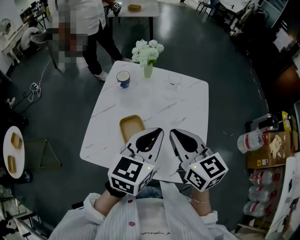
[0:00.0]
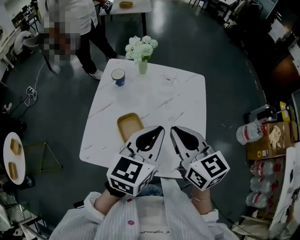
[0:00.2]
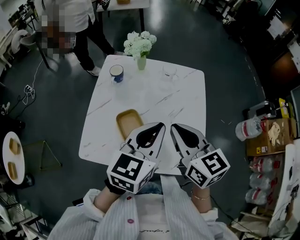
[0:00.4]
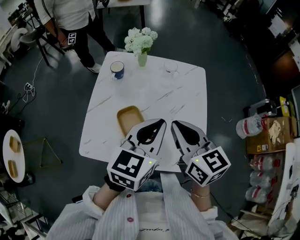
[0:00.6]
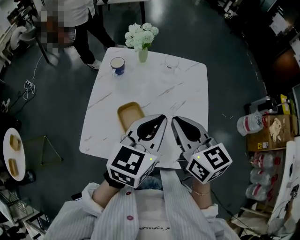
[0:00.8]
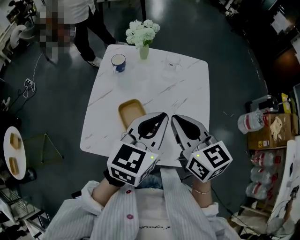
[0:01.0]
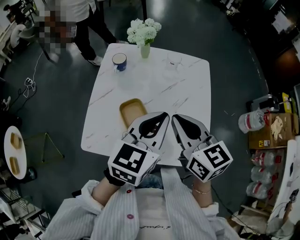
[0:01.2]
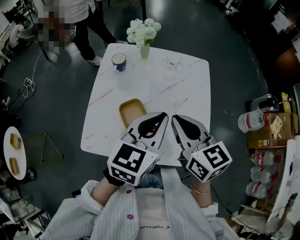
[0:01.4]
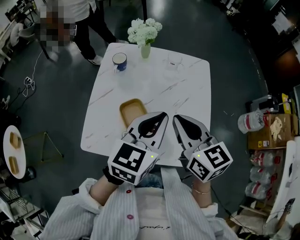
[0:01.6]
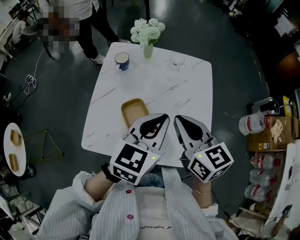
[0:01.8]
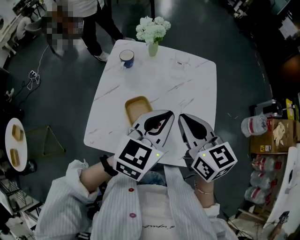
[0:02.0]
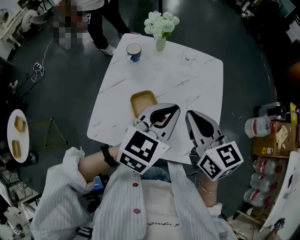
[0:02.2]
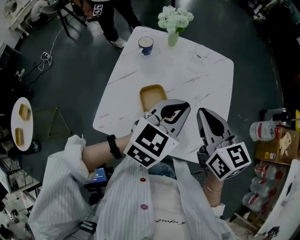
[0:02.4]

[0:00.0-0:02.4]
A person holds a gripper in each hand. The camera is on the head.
0:00.0 to 0:02.4: The grippers make only small movements.

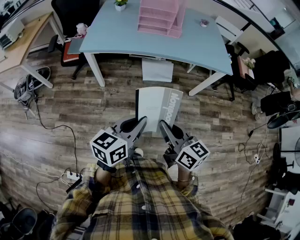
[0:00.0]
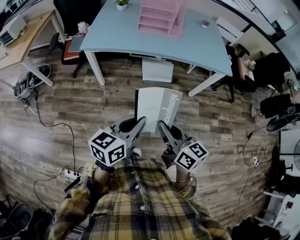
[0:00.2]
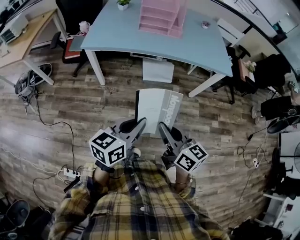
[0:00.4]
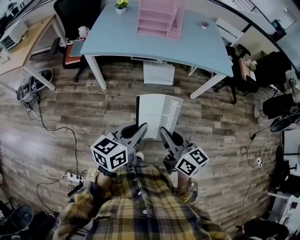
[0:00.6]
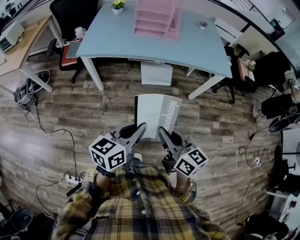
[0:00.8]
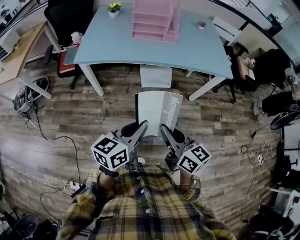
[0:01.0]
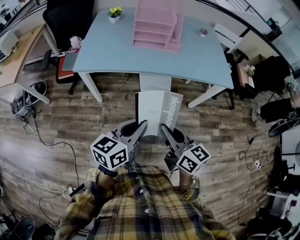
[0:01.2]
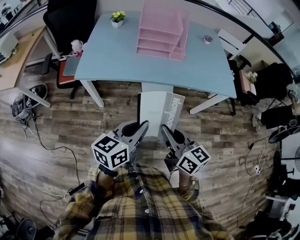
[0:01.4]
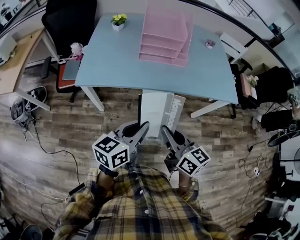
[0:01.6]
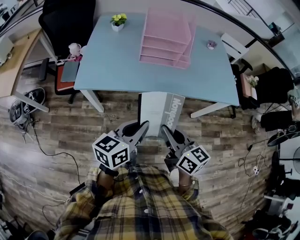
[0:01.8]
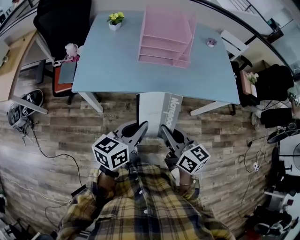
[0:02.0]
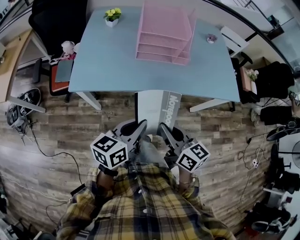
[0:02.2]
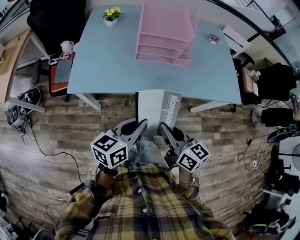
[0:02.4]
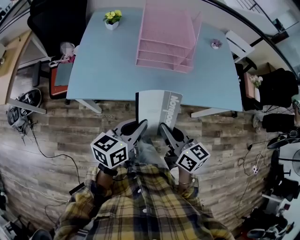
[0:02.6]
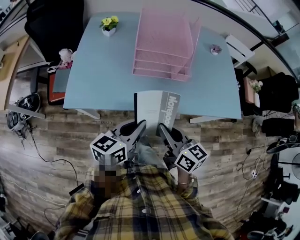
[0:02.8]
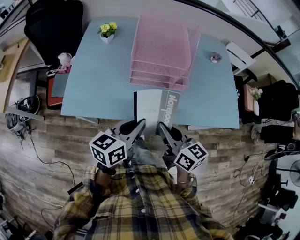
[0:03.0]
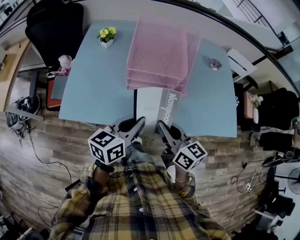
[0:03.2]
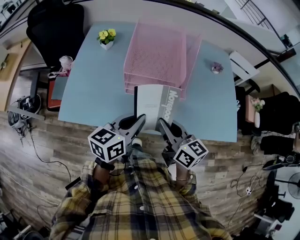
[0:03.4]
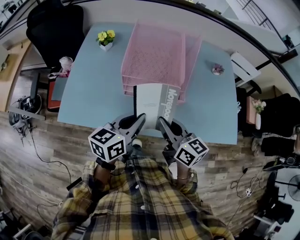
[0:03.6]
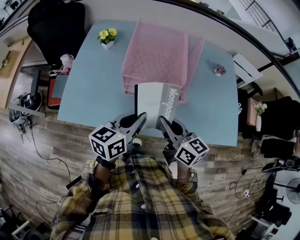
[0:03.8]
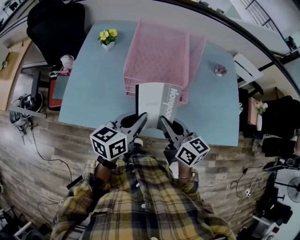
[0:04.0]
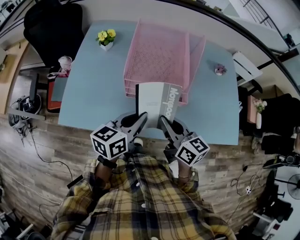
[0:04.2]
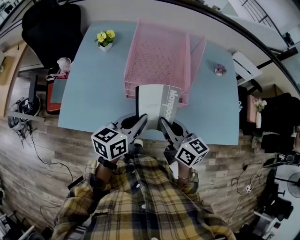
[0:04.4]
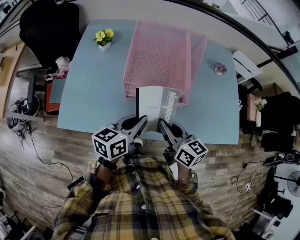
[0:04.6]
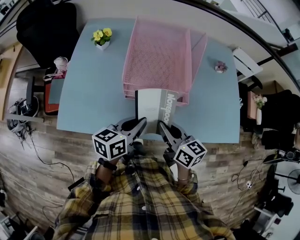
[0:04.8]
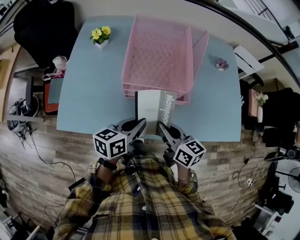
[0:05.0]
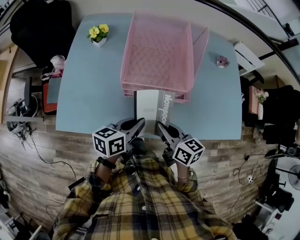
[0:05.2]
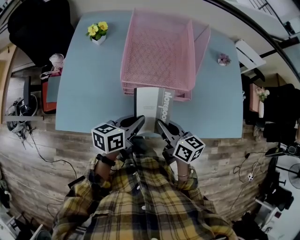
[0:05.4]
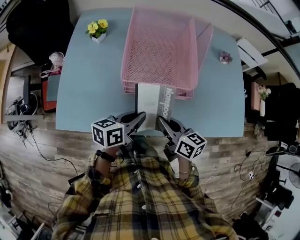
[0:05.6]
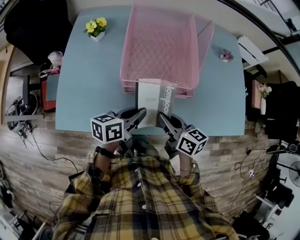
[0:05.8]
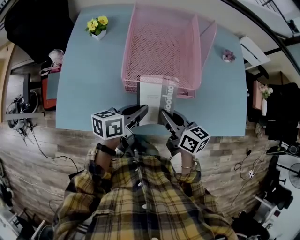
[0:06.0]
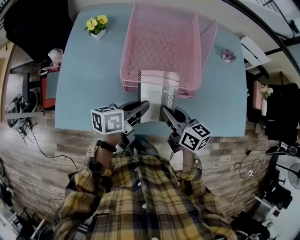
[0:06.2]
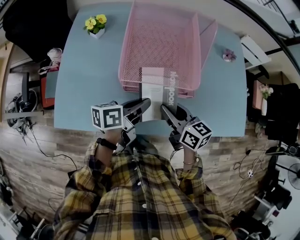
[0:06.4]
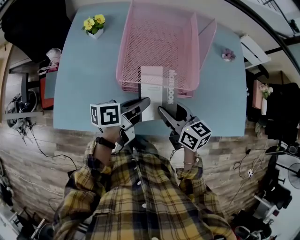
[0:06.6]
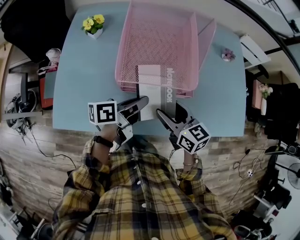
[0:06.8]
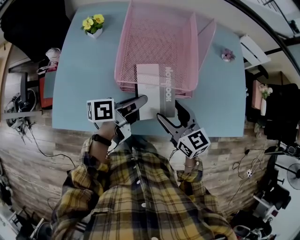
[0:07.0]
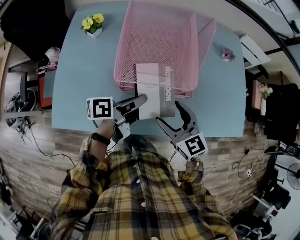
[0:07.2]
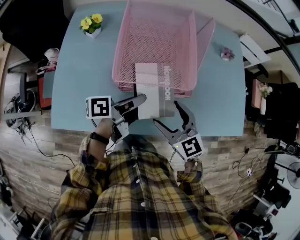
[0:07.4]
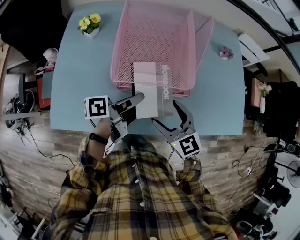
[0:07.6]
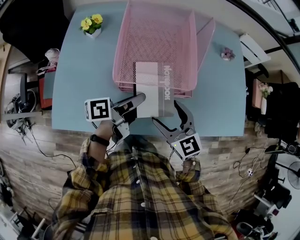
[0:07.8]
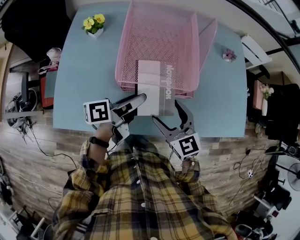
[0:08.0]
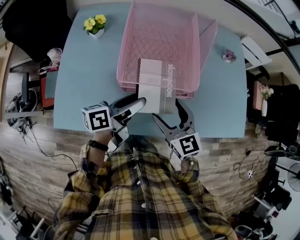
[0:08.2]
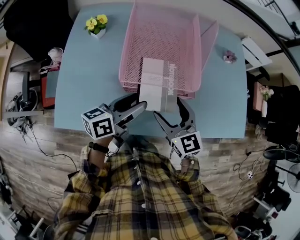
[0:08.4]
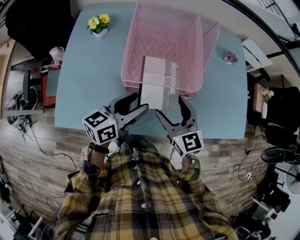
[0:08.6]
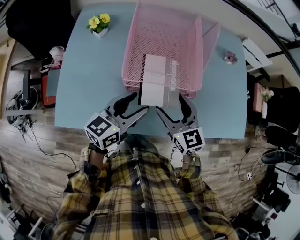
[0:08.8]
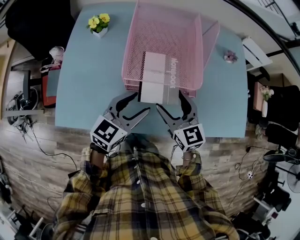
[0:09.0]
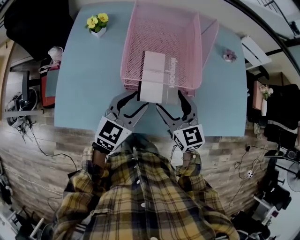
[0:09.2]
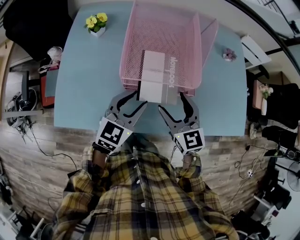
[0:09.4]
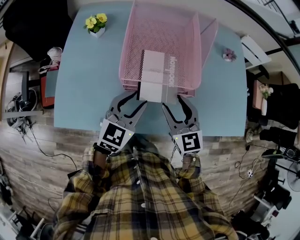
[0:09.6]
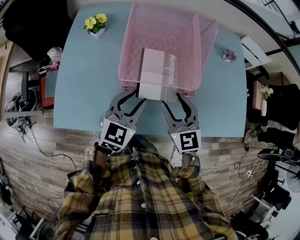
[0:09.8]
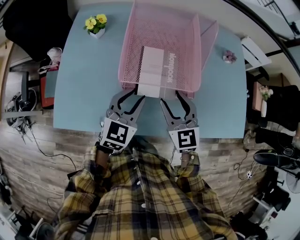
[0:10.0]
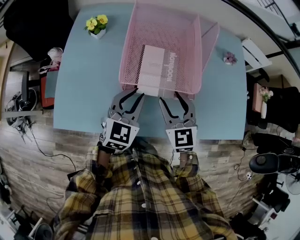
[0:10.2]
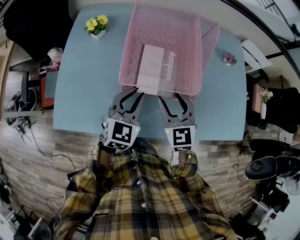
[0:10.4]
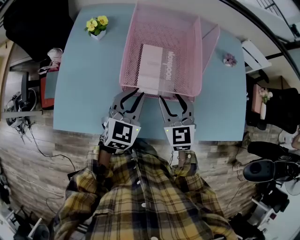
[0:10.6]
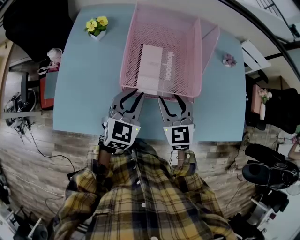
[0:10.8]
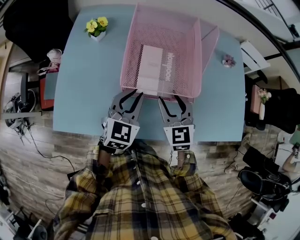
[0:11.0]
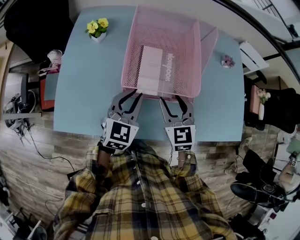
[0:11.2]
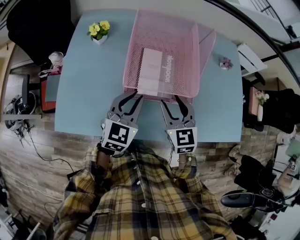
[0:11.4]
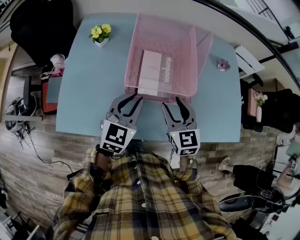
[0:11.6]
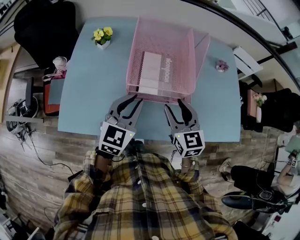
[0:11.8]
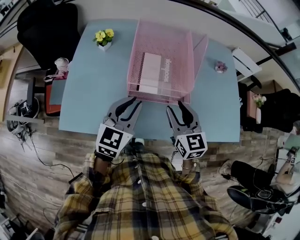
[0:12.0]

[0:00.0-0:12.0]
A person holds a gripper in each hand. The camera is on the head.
0:00.0 to 0:01.6: Both grippers travel together forward, about 20 cm.
0:01.6 to 0:03.0: Both grippers travel together forward, about 25 cm.
0:03.0 to 0:04.4: The grippers both shift forward by about 10 cm.
0:04.4 to 0:06.0: Both grippers travel together downward, approximately 10 cm. The left gripper turns by about 20 degrees.
0:06.0 to 0:07.6: The left gripper rotates approximately 30 degrees. The right gripper rotates around the line of its fingers by approximately 40 degrees, counterclockwise from behind, and opens its fingers.
0:07.6 to 0:09.0: The left gripper rotates around the line of its fingers by roughly 70 degrees, clockwise from behind, and opens.
0:09.0 to 0:10.4: The right gripper closes its fingers. The left gripper swivels roughly 20 degrees, and closes.
0:10.4 to 0:12.0: The left gripper travels upward and backward by about 10 cm. Meanwhile the right gripper moves some 5 cm.

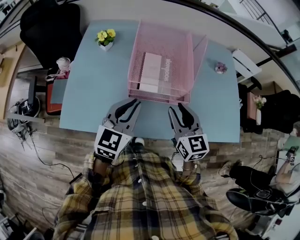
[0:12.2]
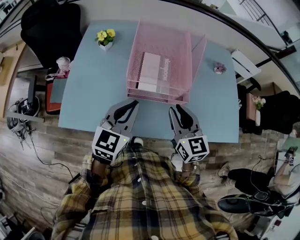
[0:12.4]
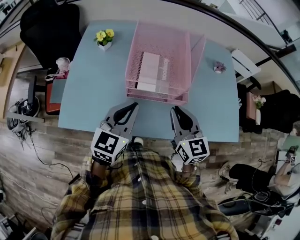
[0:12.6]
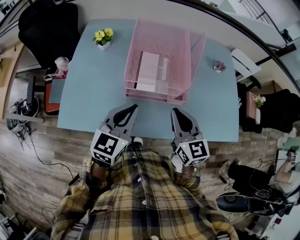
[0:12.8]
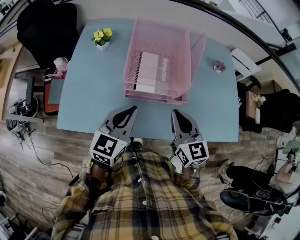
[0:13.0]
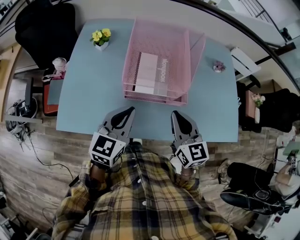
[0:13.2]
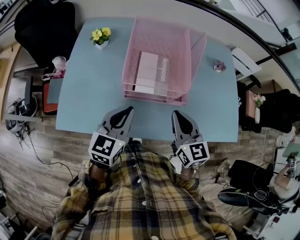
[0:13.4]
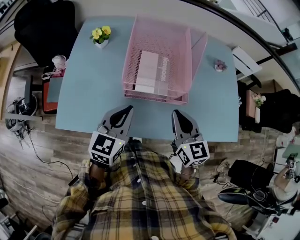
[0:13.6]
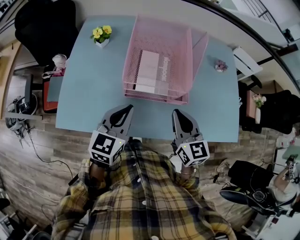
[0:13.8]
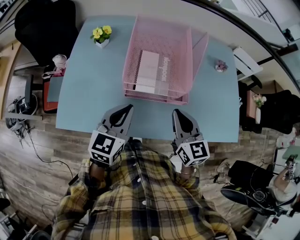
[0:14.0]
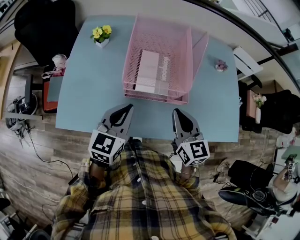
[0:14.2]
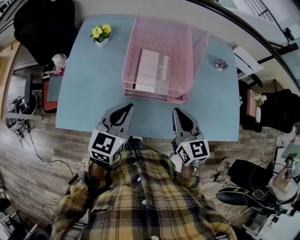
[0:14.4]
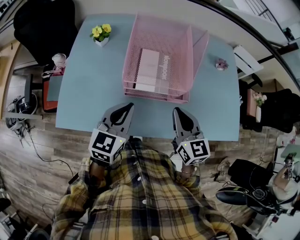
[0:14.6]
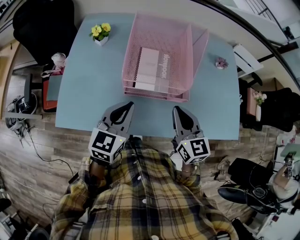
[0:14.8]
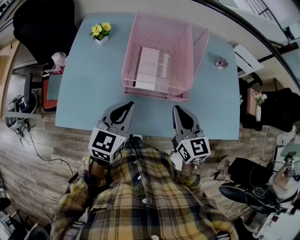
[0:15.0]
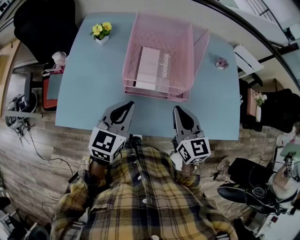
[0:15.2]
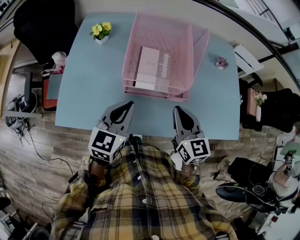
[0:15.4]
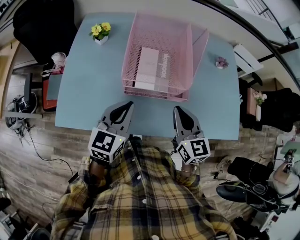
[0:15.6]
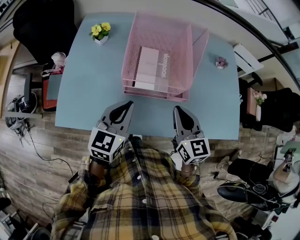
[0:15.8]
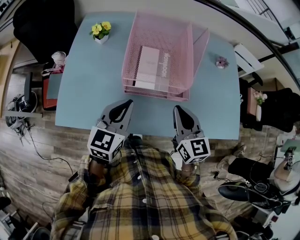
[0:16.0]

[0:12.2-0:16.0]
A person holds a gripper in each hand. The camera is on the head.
0:12.2 to 0:13.4: The right gripper closes.
0:13.4 to 0:16.0: Both grippers stay put.

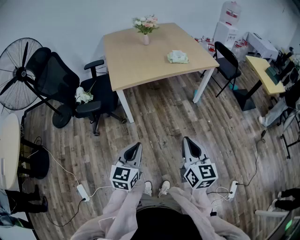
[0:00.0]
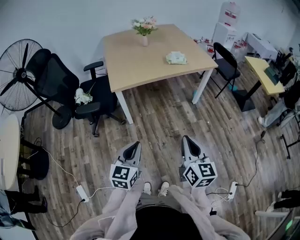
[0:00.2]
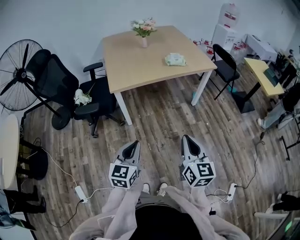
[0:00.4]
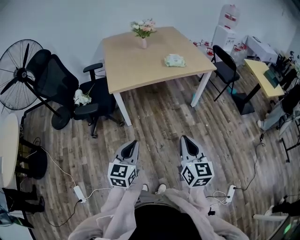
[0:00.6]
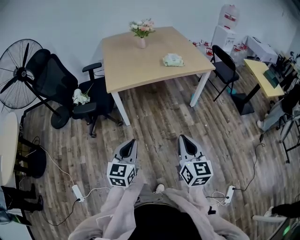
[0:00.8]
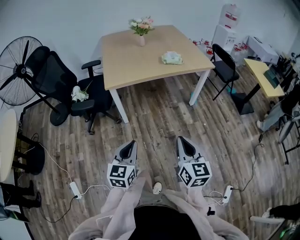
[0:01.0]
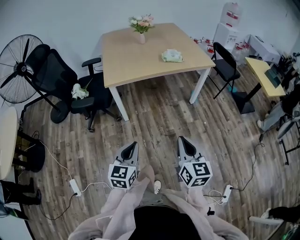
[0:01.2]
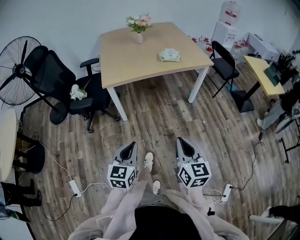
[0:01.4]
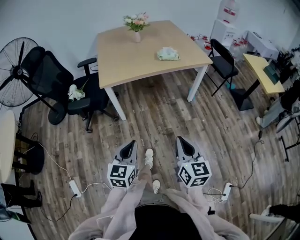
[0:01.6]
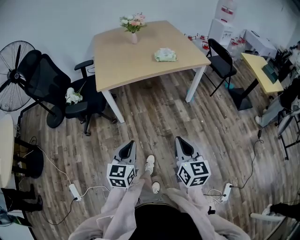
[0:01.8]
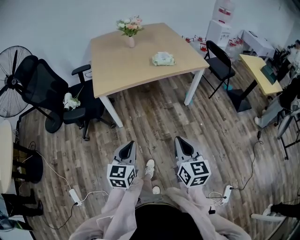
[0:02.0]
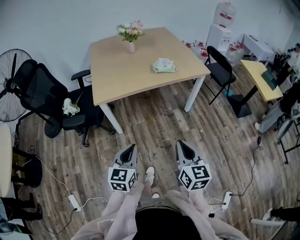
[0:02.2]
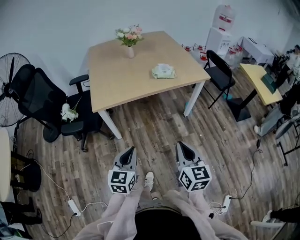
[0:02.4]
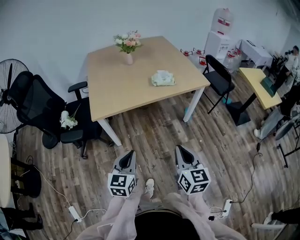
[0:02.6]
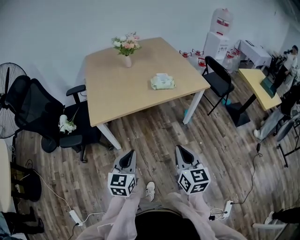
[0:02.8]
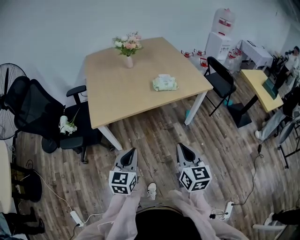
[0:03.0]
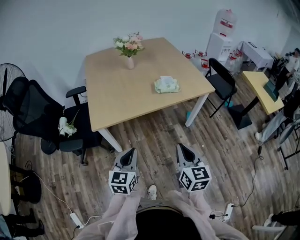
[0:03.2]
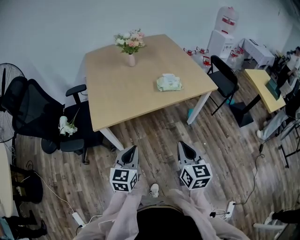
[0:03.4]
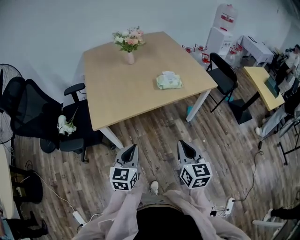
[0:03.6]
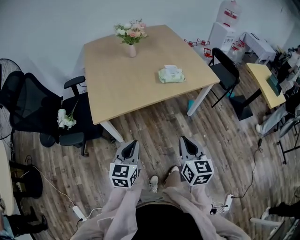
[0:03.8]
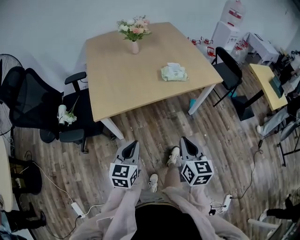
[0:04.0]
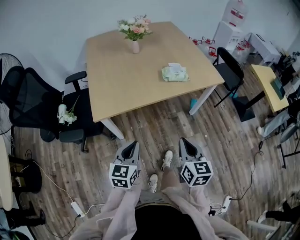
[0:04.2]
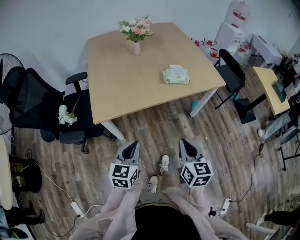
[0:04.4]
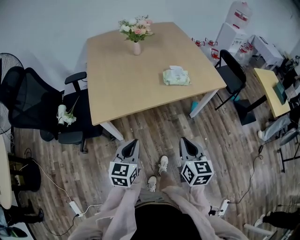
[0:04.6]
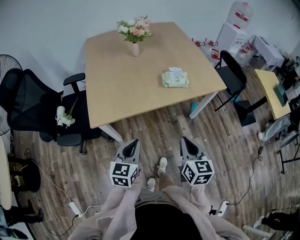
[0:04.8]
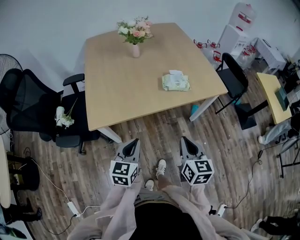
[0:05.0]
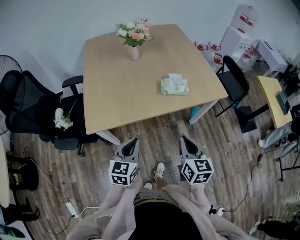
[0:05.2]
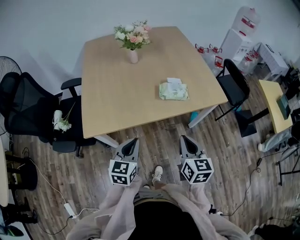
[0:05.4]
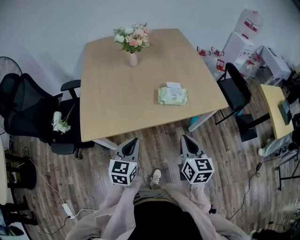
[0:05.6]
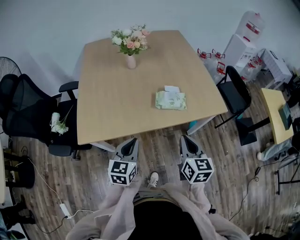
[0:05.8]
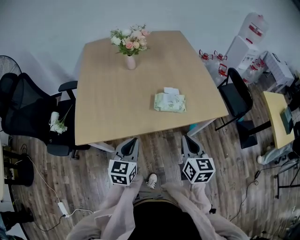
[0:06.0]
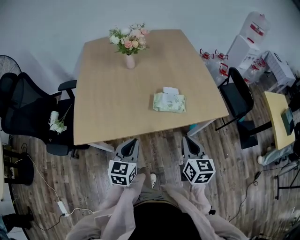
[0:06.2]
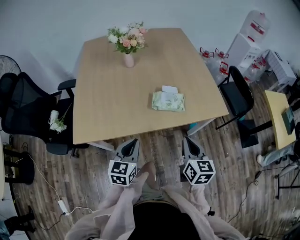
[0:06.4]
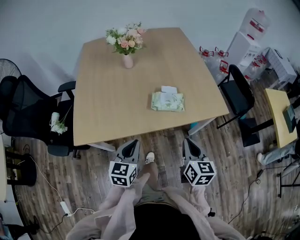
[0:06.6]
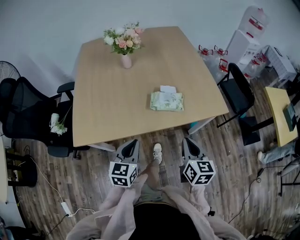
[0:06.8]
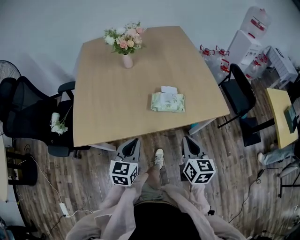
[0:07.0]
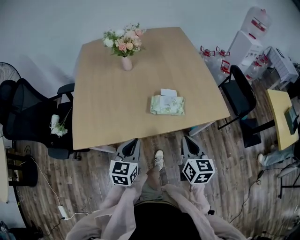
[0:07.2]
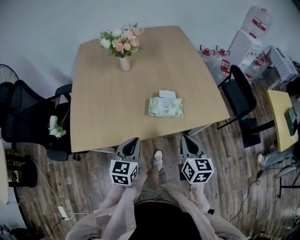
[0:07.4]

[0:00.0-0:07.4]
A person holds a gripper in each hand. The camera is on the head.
0:00.0 to 0:01.4: The two grippers go approximately 5 cm to the right.
0:01.4 to 0:03.0: The grippers both shift forward by approximately 25 cm.
0:03.0 to 0:04.4: The grippers both shift forward by approximately 5 cm.
0:04.4 to 0:06.0: The grippers both shift forward and to the right by some 25 cm.
0:06.0 to 0:07.4: Both grippers move forward, approximately 5 cm.
